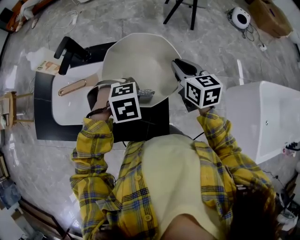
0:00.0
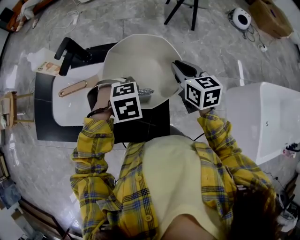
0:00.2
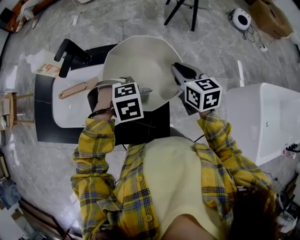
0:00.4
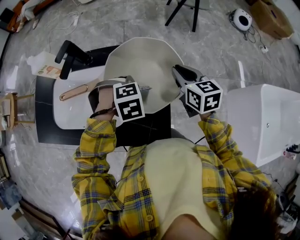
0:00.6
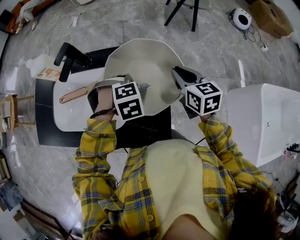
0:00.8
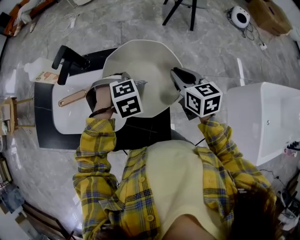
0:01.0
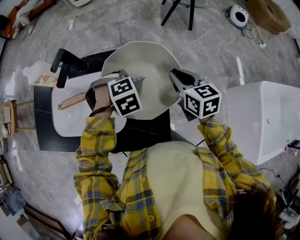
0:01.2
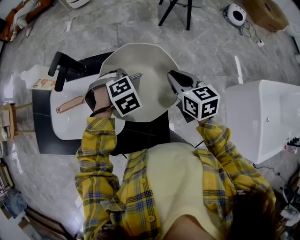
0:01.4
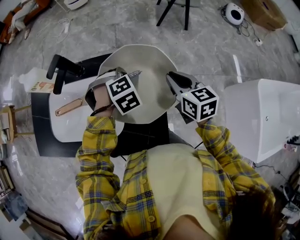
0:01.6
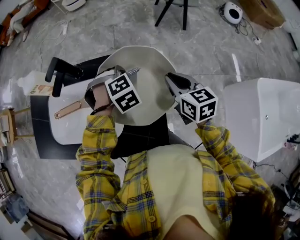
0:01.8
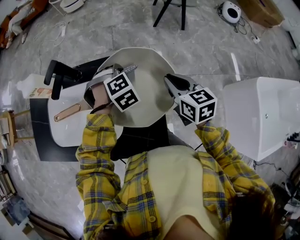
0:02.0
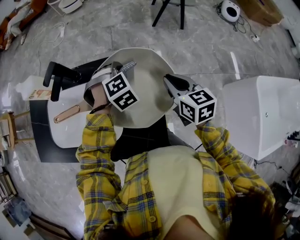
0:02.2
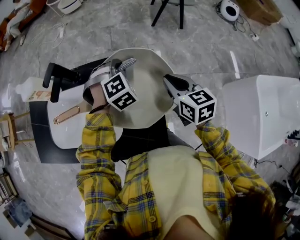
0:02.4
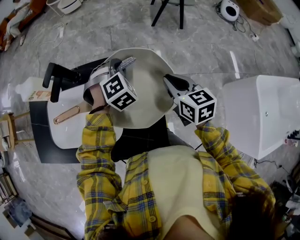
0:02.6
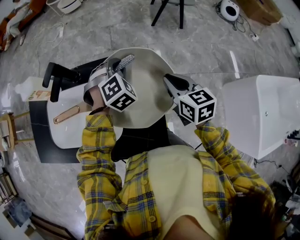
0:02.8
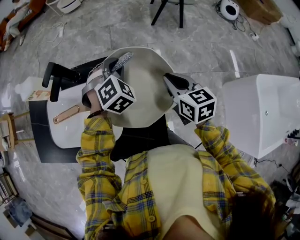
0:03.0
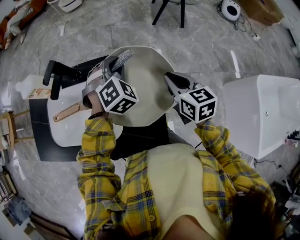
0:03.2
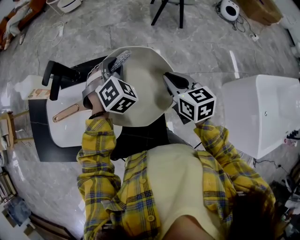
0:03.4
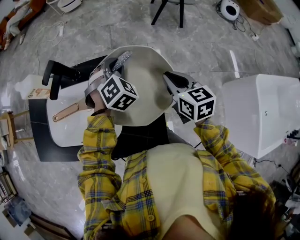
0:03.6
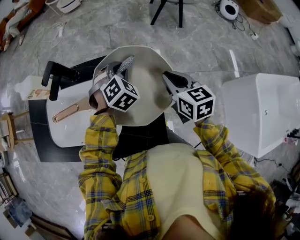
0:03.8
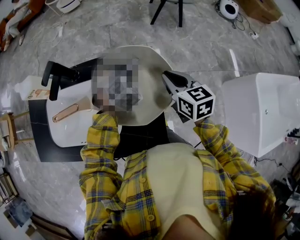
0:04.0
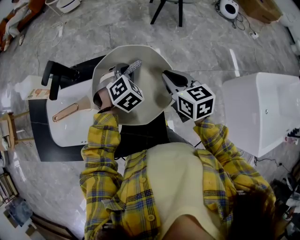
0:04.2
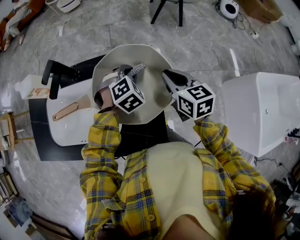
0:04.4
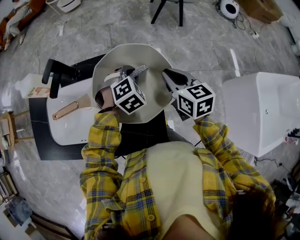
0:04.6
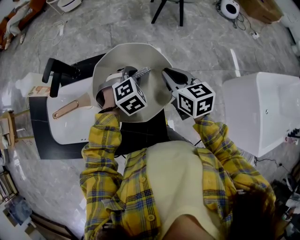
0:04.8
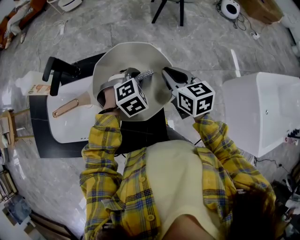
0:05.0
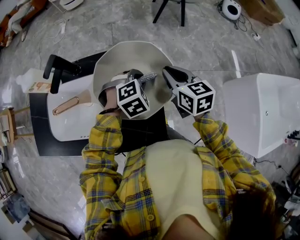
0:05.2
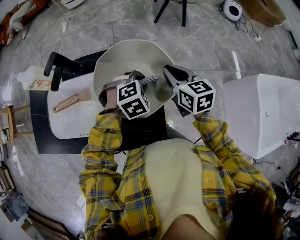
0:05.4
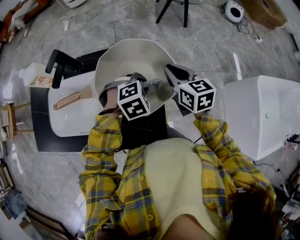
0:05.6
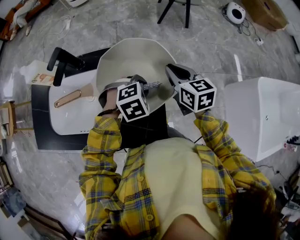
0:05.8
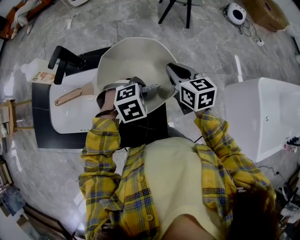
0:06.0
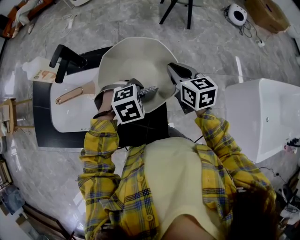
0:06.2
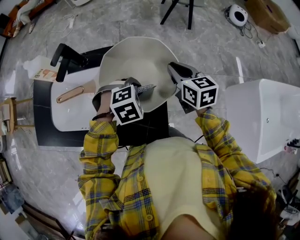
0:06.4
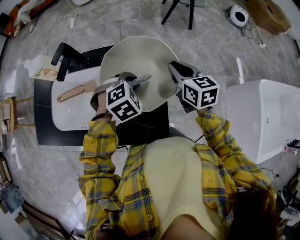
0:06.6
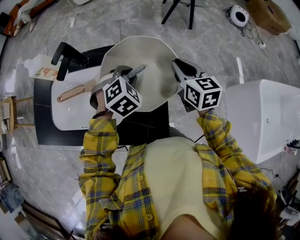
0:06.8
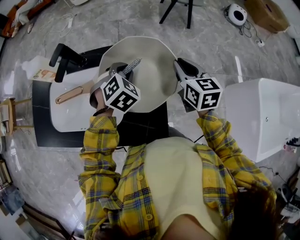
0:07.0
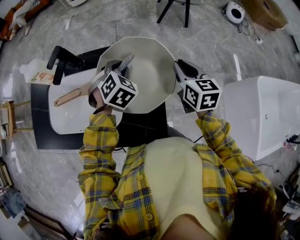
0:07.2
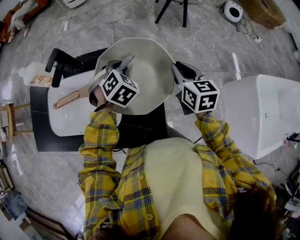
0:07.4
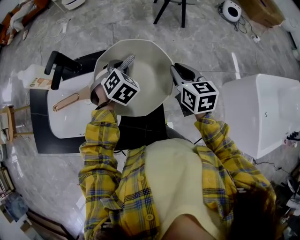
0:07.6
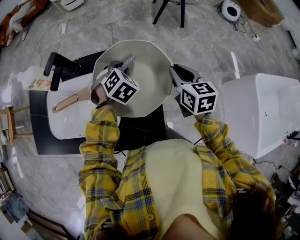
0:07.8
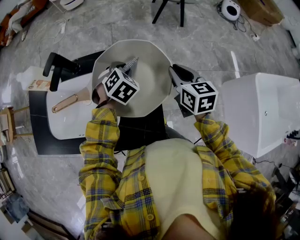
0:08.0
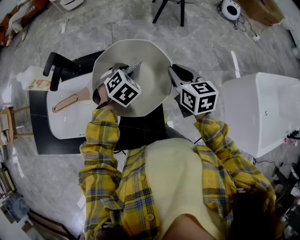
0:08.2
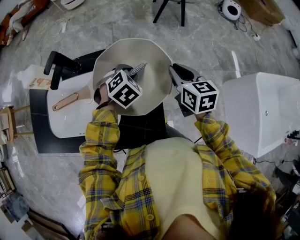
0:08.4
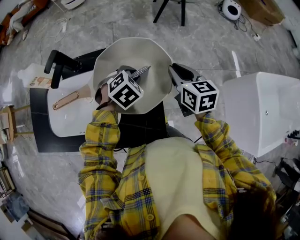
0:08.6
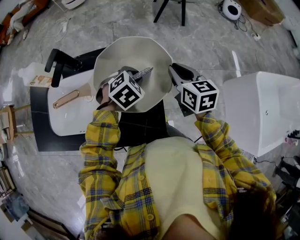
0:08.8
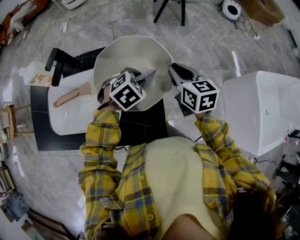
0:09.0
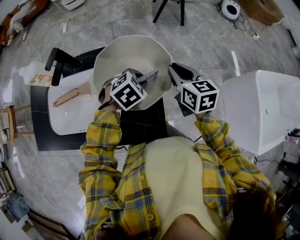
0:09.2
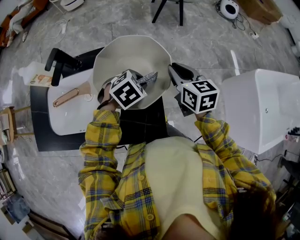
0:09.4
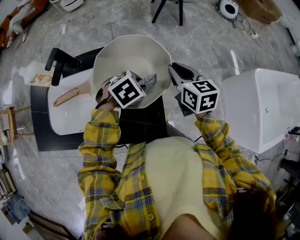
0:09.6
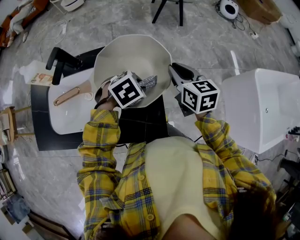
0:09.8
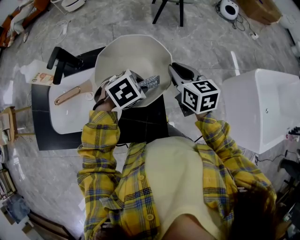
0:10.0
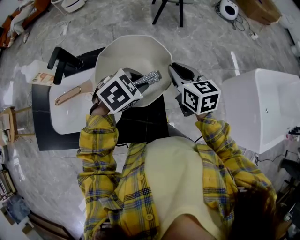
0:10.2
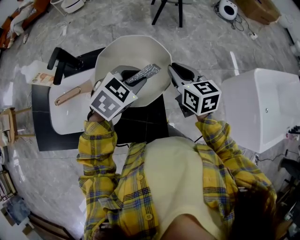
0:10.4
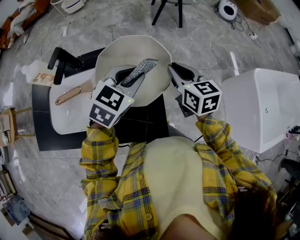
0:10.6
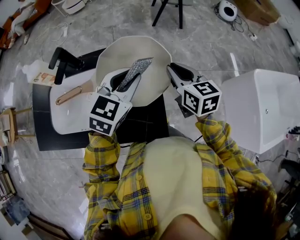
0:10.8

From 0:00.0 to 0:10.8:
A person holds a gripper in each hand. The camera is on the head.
From 0:00.0 to 0:01.6: The left gripper ends up approximately 15 cm from where it was, and swivels roughly 20 degrees.
From 0:01.6 to 0:03.0: The left gripper is displaced forward and upward by approximately 10 cm, and rotates roughly 30 degrees.
From 0:03.0 to 0:04.6: The left gripper shifts roughly 10 cm downward and backward.
From 0:04.6 to 0:06.2: The left gripper shifts some 10 cm backward, and changes its angle by about 20 degrees.
From 0:06.2 to 0:07.8: The left gripper heads forward, covering some 15 cm, and turns by about 30 degrees.
From 0:07.8 to 0:09.2: The left gripper shifts some 10 cm backward and to the right, and turns by approximately 30 degrees.
From 0:09.2 to 0:10.8: The left gripper goes roughly 15 cm upward, and tips its fingers upward by roughly 30 degrees.

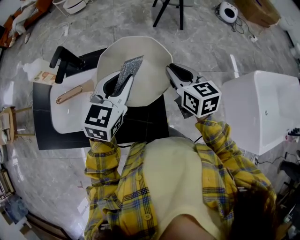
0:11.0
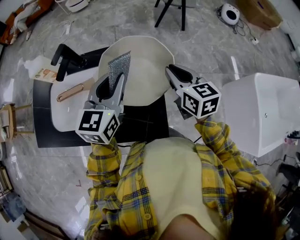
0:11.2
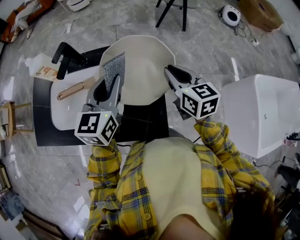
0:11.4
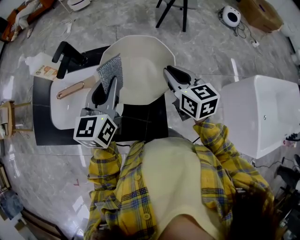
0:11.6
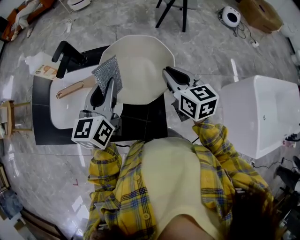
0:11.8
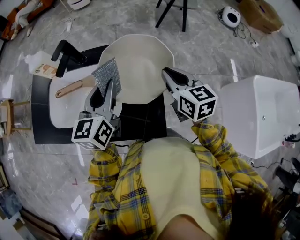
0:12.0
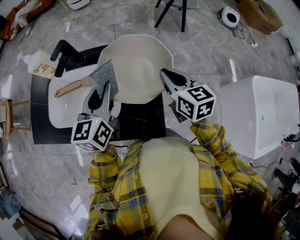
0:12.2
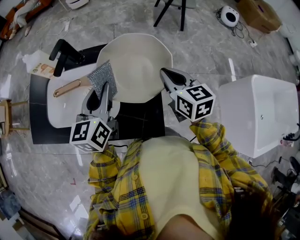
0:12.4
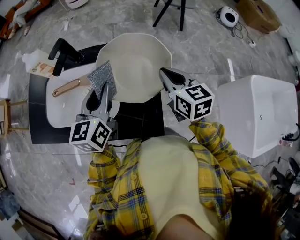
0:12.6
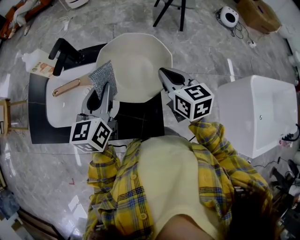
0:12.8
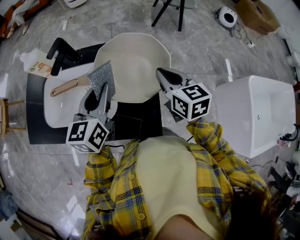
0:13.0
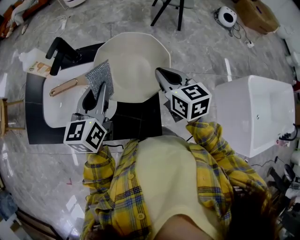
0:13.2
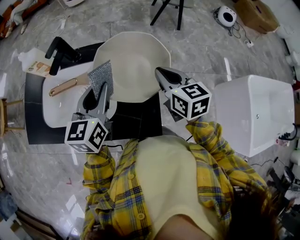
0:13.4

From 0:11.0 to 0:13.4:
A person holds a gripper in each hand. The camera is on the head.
From 0:11.0 to 0:12.2: The left gripper moves to the left, about 10 cm, and turns by roughly 30 degrees.
From 0:12.2 to 0:13.4: The grippers stay close to where they were, moving slightly.

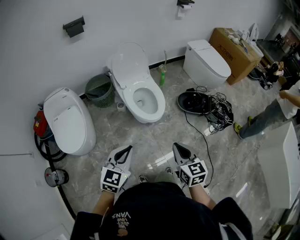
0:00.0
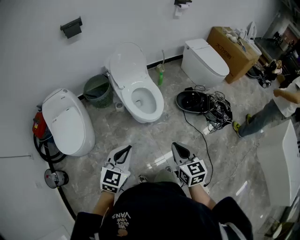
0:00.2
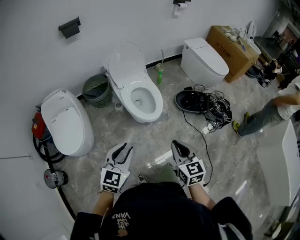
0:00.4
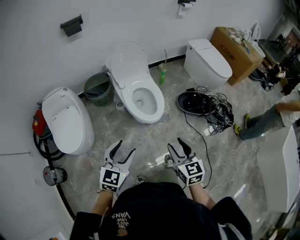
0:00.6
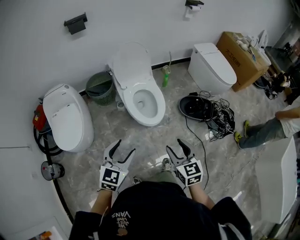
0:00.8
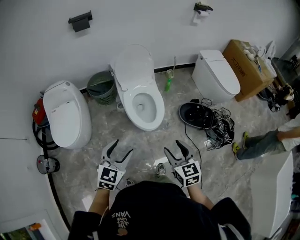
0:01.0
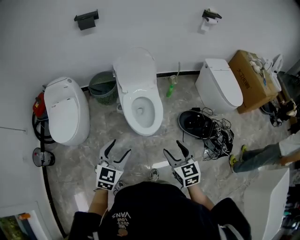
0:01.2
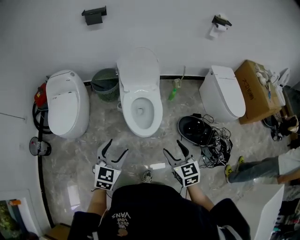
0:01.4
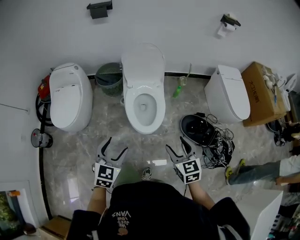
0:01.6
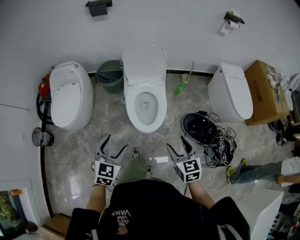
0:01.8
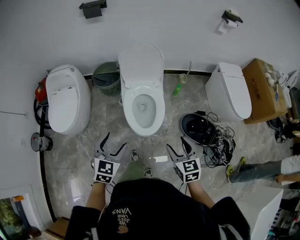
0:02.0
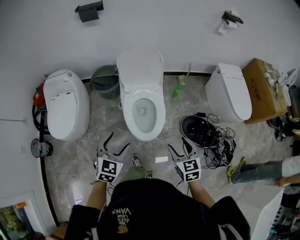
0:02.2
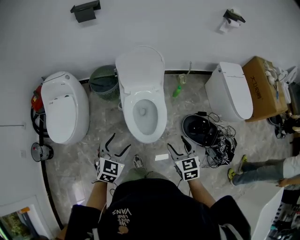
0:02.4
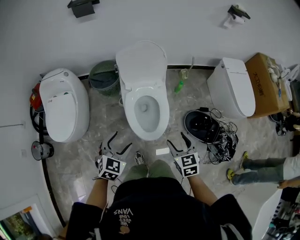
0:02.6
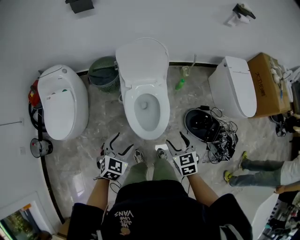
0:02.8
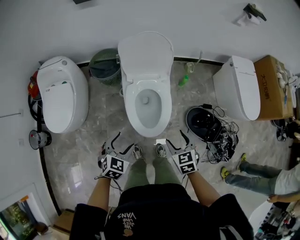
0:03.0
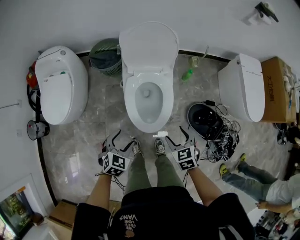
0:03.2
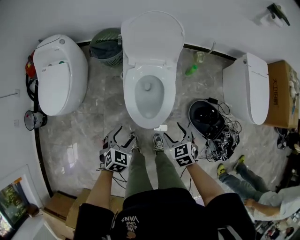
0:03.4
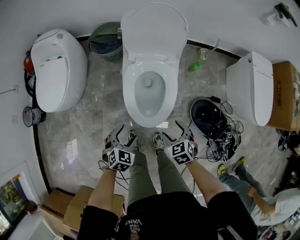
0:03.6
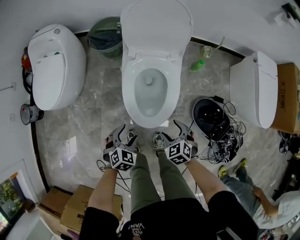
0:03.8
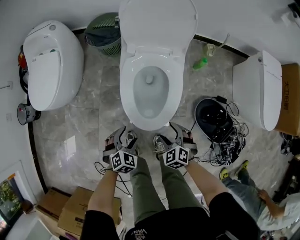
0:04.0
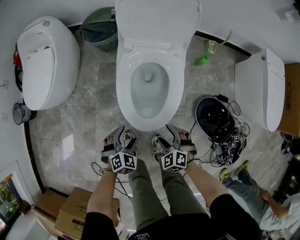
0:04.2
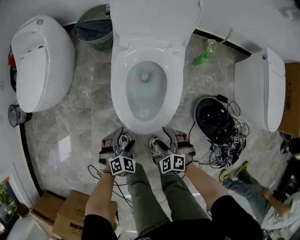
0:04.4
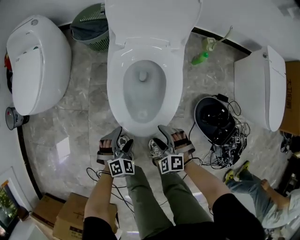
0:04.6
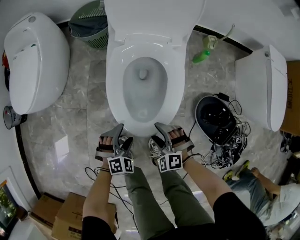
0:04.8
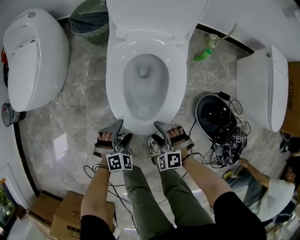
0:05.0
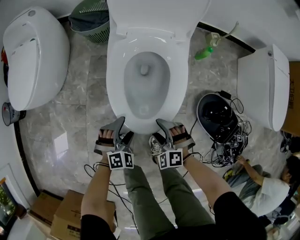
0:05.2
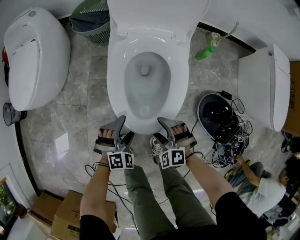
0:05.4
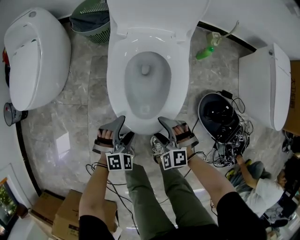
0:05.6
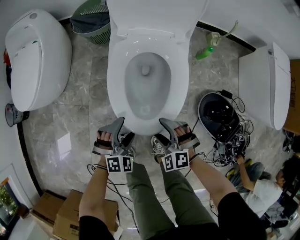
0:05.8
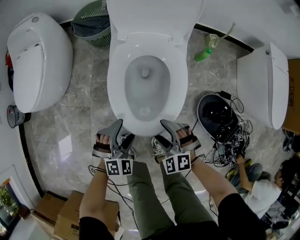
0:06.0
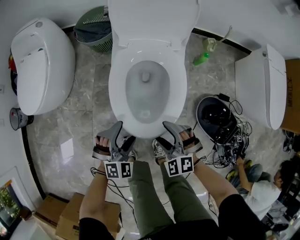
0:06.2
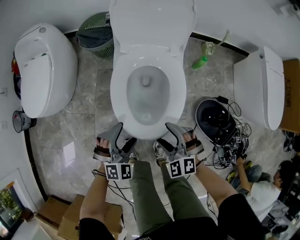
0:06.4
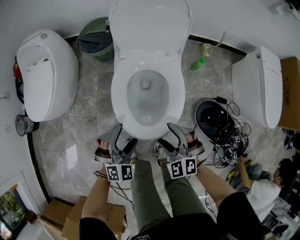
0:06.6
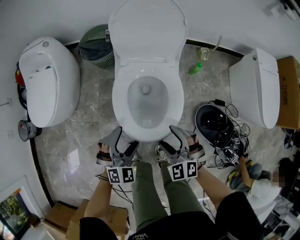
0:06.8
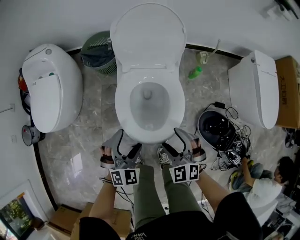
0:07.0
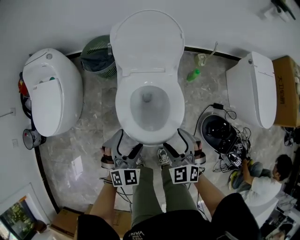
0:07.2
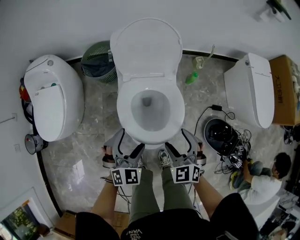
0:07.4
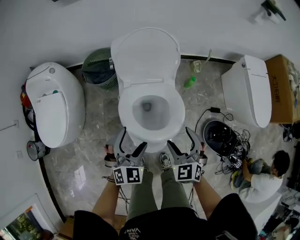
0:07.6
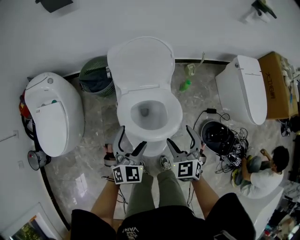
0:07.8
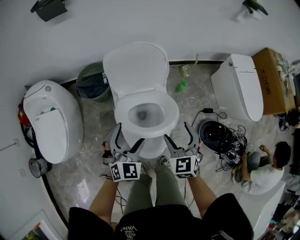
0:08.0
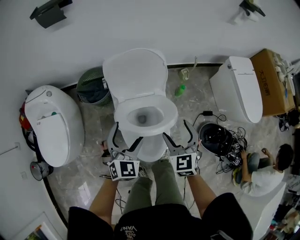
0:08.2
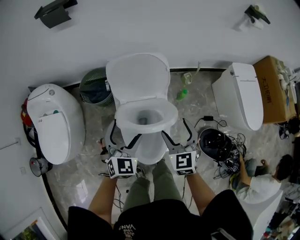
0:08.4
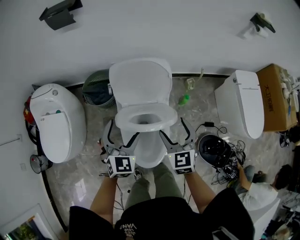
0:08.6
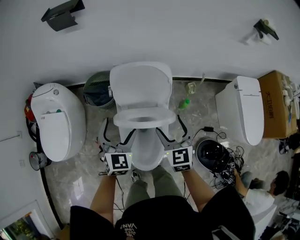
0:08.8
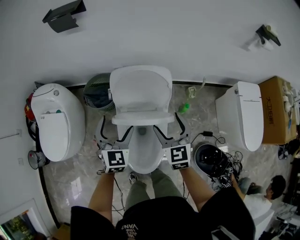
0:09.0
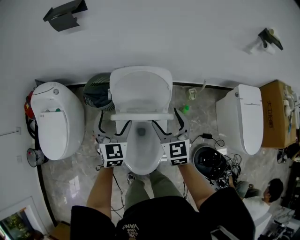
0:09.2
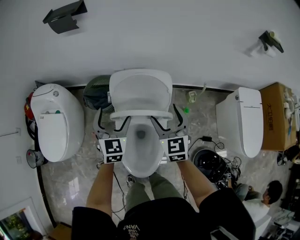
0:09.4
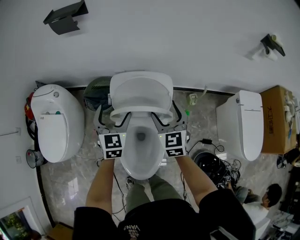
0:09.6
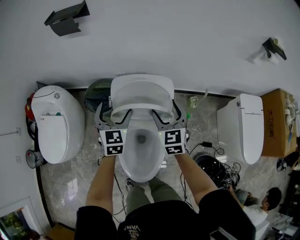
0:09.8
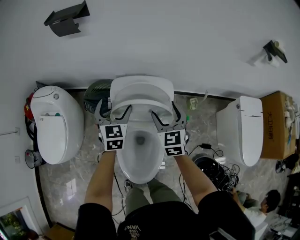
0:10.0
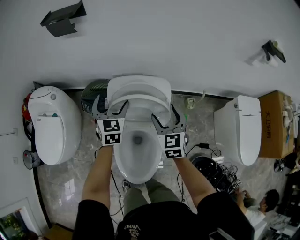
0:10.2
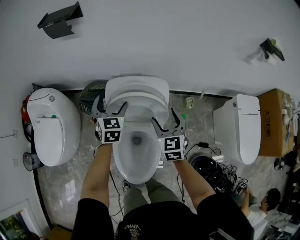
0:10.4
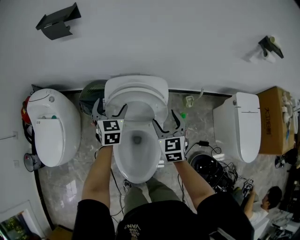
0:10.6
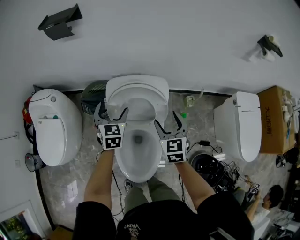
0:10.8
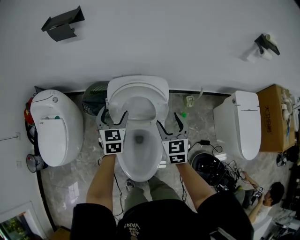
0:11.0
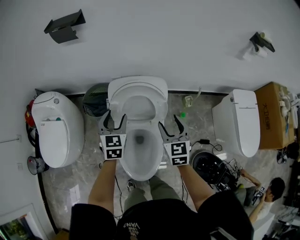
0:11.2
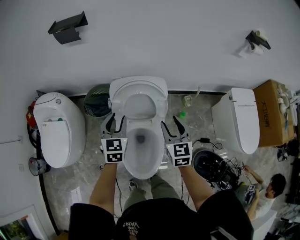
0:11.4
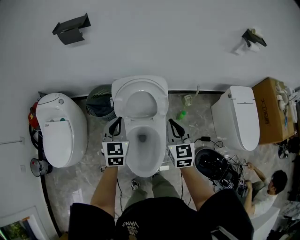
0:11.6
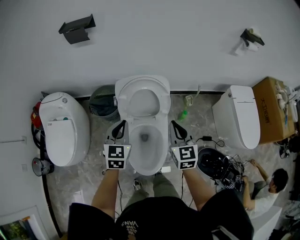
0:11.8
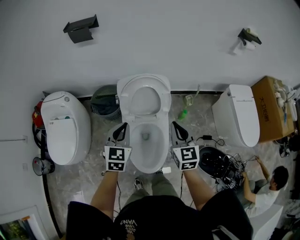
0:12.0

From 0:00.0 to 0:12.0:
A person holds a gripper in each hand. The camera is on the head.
From 0:00.0 to 0:01.6: The right gripper shifts by approximately 25 cm, swivels approximately 30 degrees, and opens up, while the left gripper changes place by about 15 cm, rotates approximately 30 degrees, and opens up.
From 0:01.6 to 0:03.0: Both grippers travel together forward and downward, roughly 20 cm.
From 0:03.0 to 0:04.4: The two grippers go roughly 30 cm downward. The right gripper rotates around the line of its fingers by roughly 50 degrees, counterclockwise from behind; the left gripper swivels roughly 20 degrees.
From 0:04.4 to 0:06.0: The grippers move only a little.
From 0:06.0 to 0:07.6: Both grippers travel together upward and forward, some 25 cm. The right gripper turns by some 40 degrees.
From 0:07.6 to 0:09.0: Both grippers move forward and upward, roughly 20 cm. The right gripper changes its angle by approximately 20 degrees. The left gripper rotates about 20 degrees.
From 0:09.0 to 0:10.4: The right gripper shifts roughly 10 cm forward; the left gripper heads forward, covering some 15 cm.
From 0:10.4 to 0:12.0: The left gripper is displaced backward by some 25 cm, and closes its fingers; the right gripper travels backward and upward by some 20 cm, and closes up.
